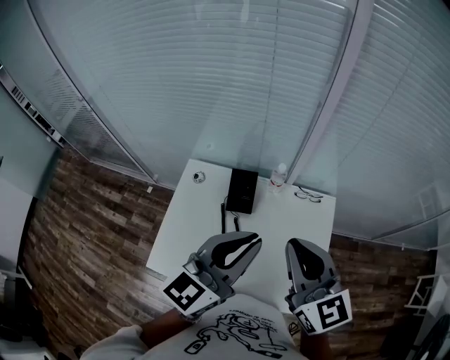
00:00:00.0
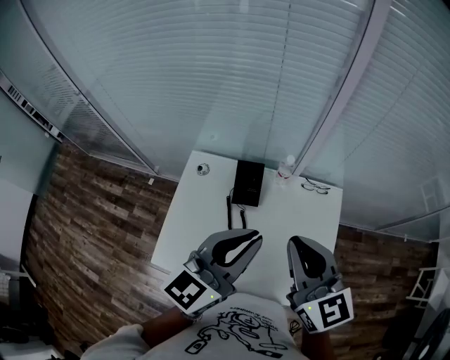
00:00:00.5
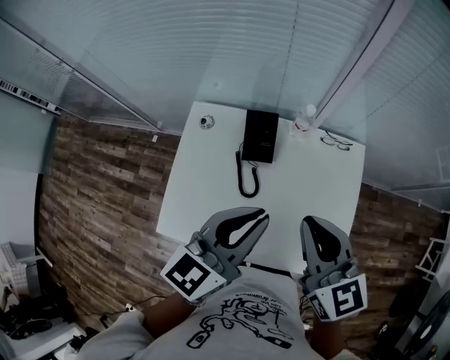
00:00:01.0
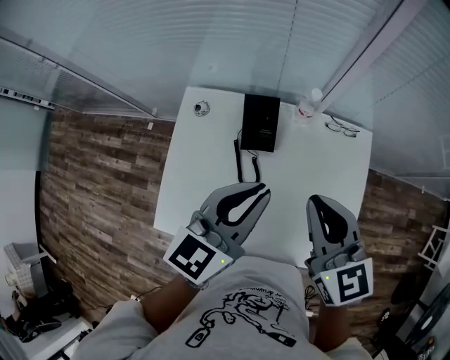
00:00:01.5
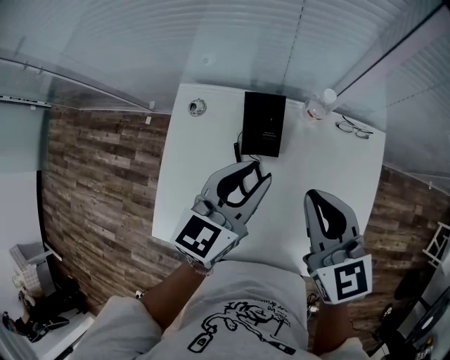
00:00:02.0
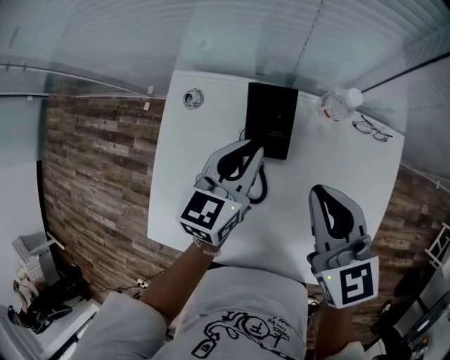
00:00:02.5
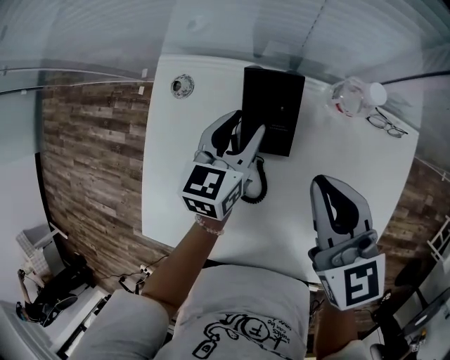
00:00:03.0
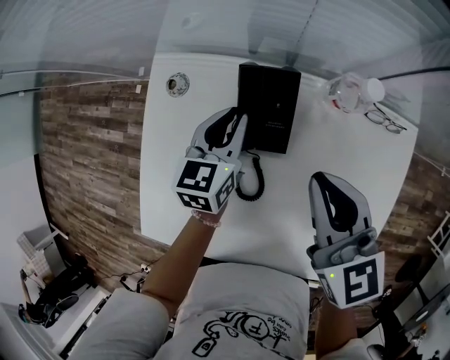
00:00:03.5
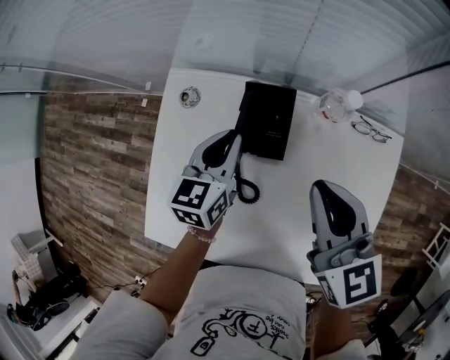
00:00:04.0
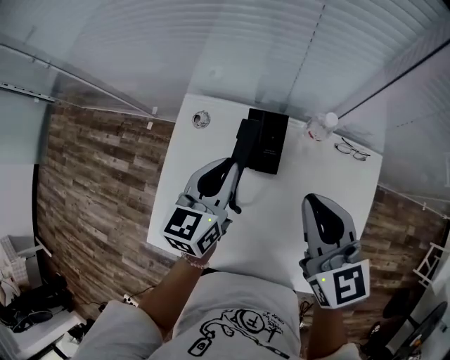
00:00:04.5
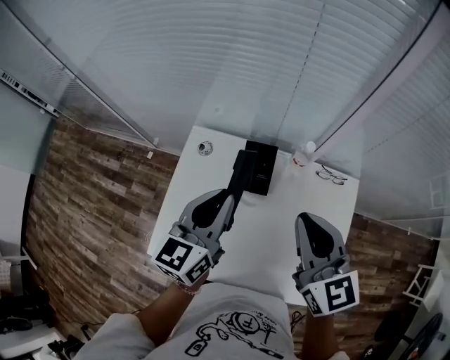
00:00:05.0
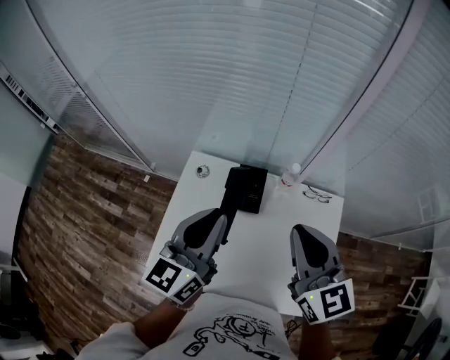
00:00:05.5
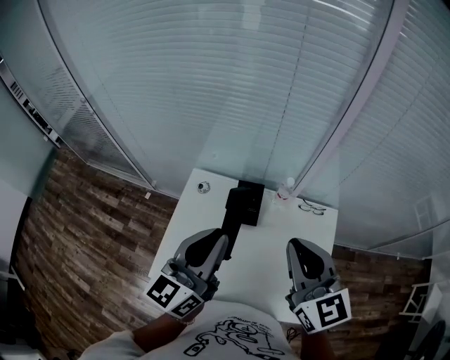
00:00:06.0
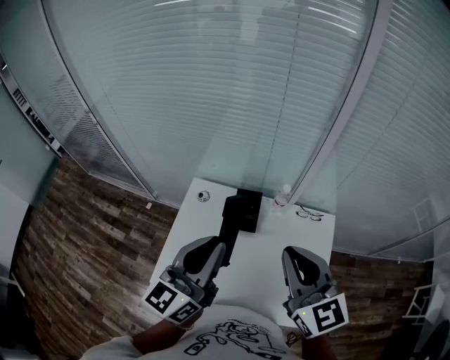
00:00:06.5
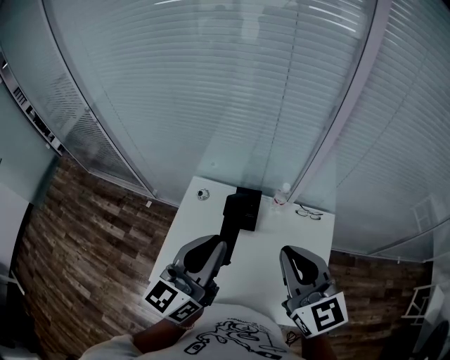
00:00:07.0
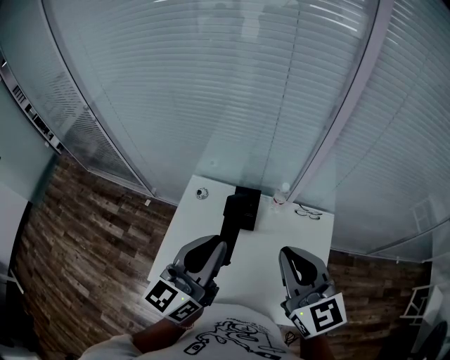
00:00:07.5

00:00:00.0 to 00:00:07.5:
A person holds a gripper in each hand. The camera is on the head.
00:00:00.0 to 00:00:02.0: Both grippers travel together downward and forward, about 25 cm. The left gripper turns by roughly 20 degrees.
00:00:02.0 to 00:00:04.0: The left gripper heads downward, forward and to the left, covering roughly 20 cm, and closes; the right gripper goes some 5 cm forward.
00:00:04.0 to 00:00:05.5: Both grippers move upward and backward, roughly 30 cm. The left gripper swivels about 30 degrees.
00:00:05.5 to 00:00:07.5: Both grippers move backward, some 5 cm.

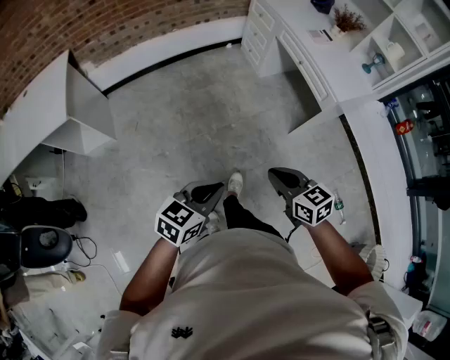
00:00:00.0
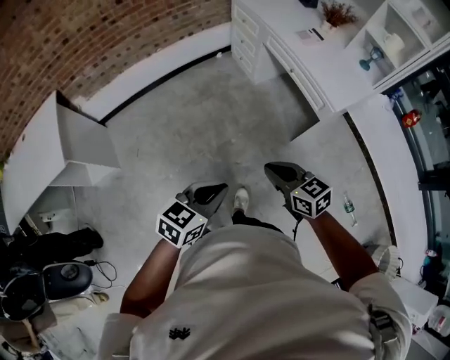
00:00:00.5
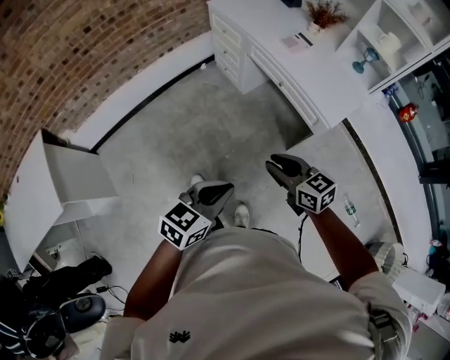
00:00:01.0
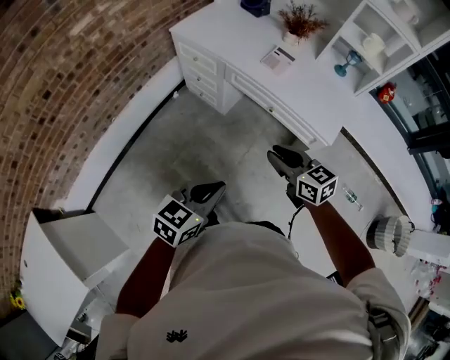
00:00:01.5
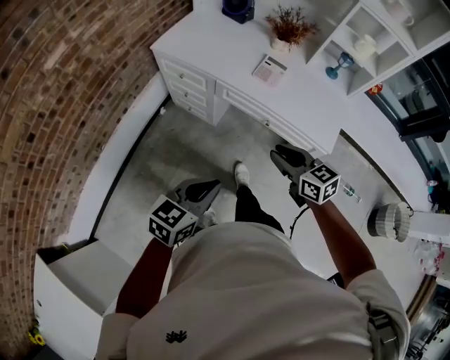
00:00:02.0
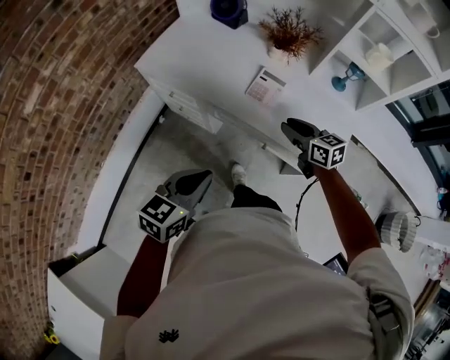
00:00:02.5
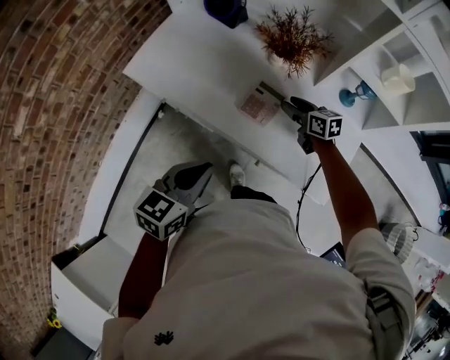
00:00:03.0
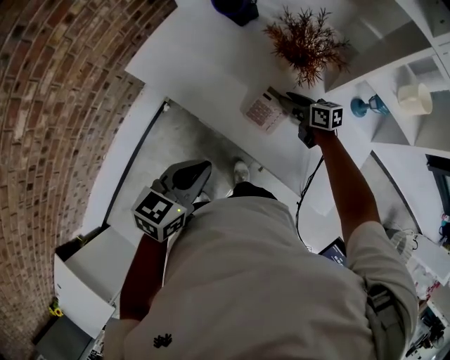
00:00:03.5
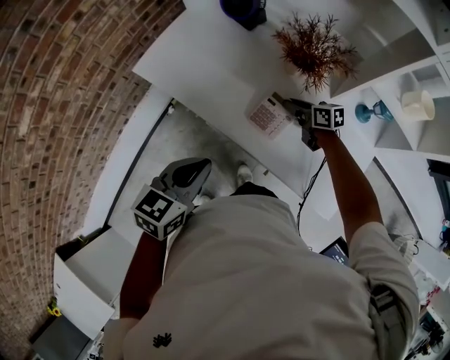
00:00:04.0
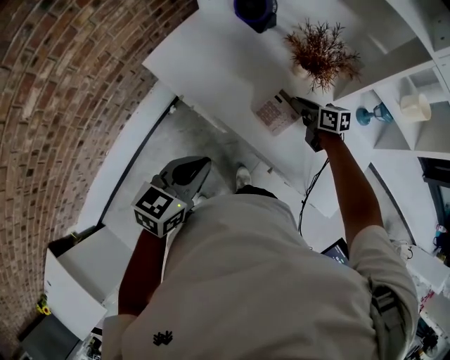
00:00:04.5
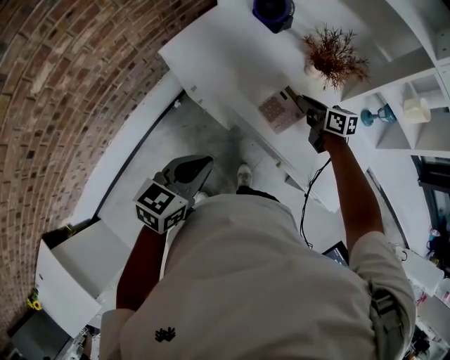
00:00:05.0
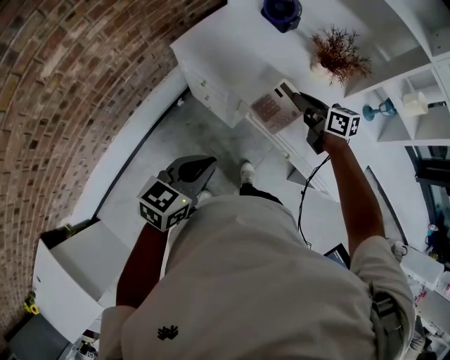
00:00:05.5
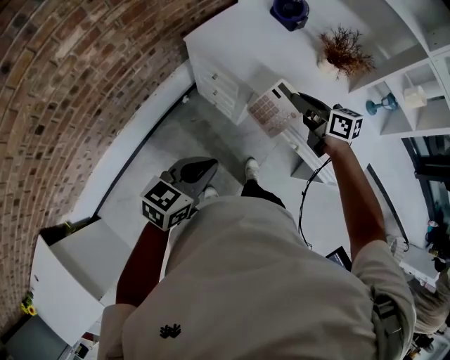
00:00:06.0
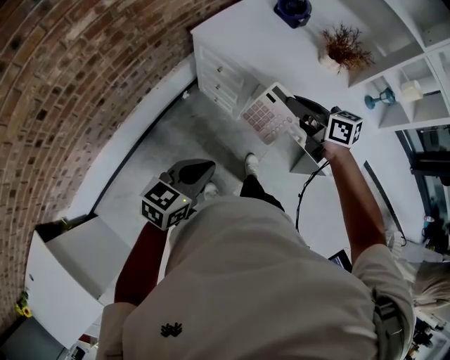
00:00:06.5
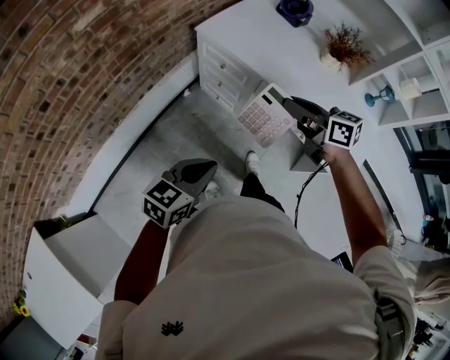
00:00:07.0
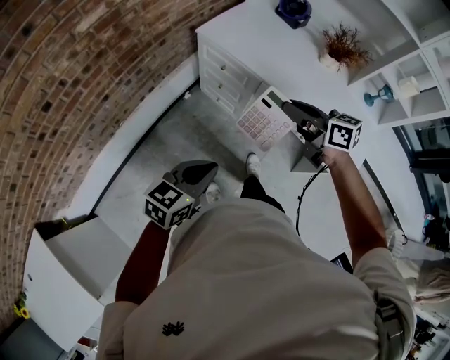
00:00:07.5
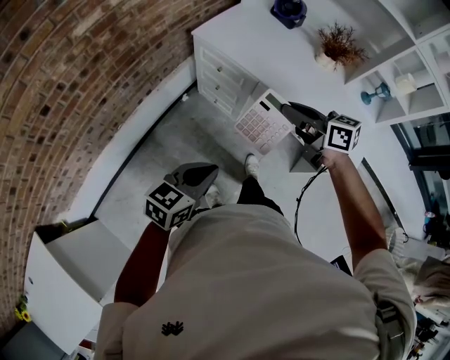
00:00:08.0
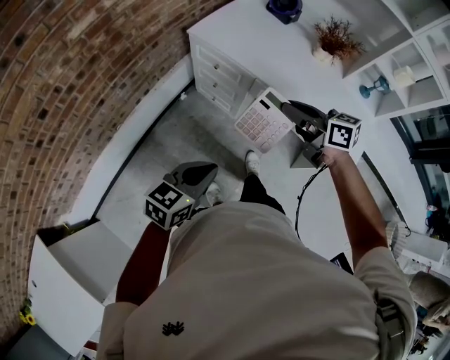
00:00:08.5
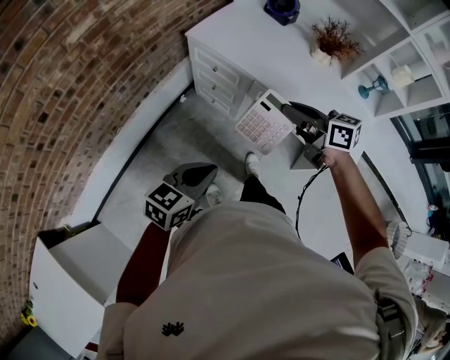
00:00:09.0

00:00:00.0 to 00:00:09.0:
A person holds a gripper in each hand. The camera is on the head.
00:00:00.0 to 00:00:02.0: The pair of grippers is taken roughly 60 cm. The left gripper rotates some 30 degrees, while the right gripper changes its angle by about 30 degrees, and opens.
00:00:02.0 to 00:00:04.5: Both grippers move forward, roughly 40 cm. The right gripper rotates about 20 degrees, and opens, then closes again.
00:00:04.5 to 00:00:07.0: The left gripper is displaced backward and to the left by about 30 cm, while the right gripper goes approximately 40 cm to the left, backward and upward.
00:00:07.0 to 00:00:09.0: The grippers move only a little.

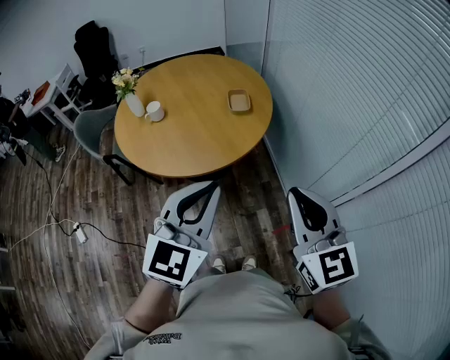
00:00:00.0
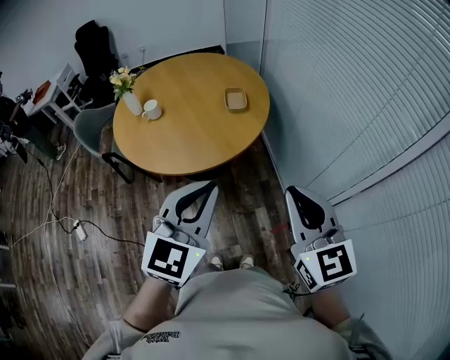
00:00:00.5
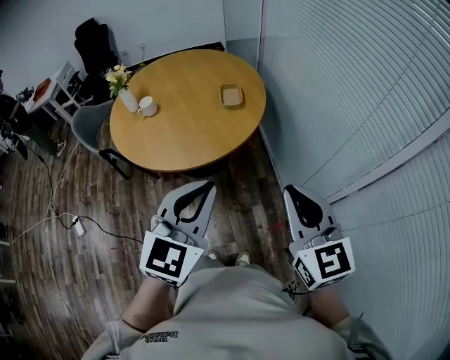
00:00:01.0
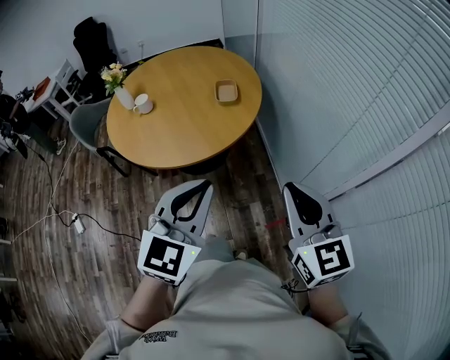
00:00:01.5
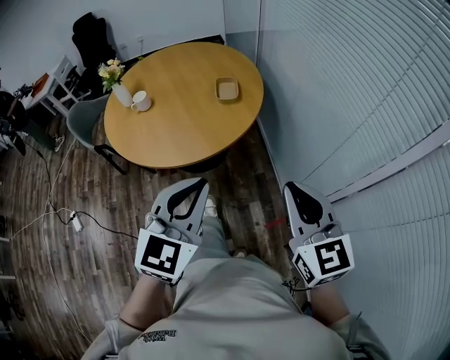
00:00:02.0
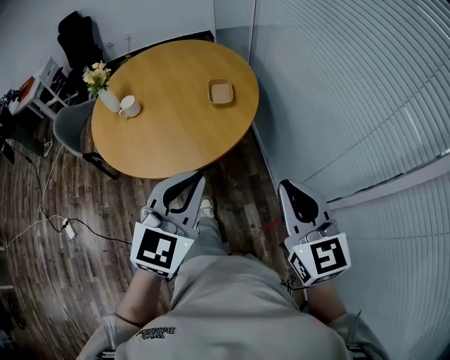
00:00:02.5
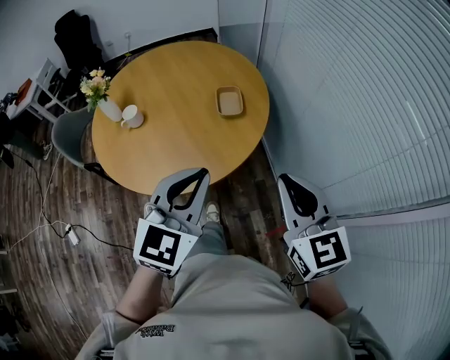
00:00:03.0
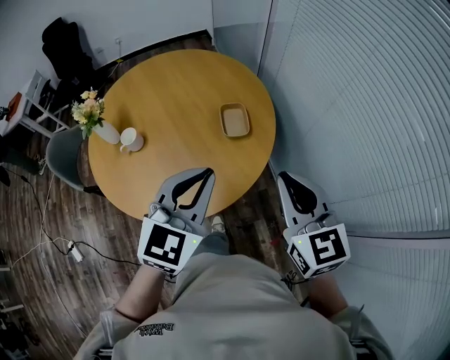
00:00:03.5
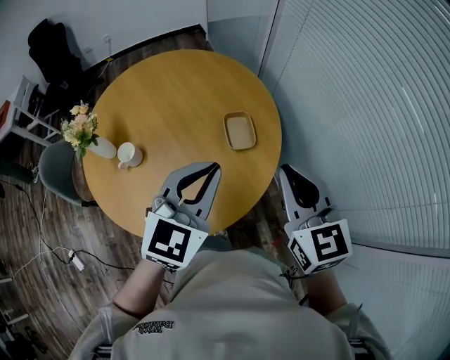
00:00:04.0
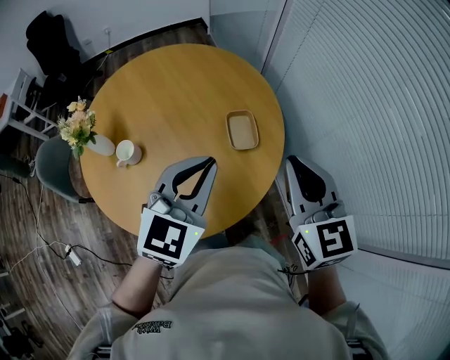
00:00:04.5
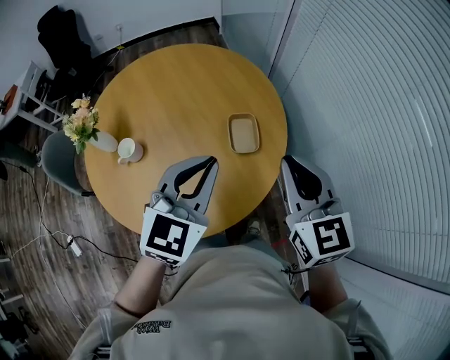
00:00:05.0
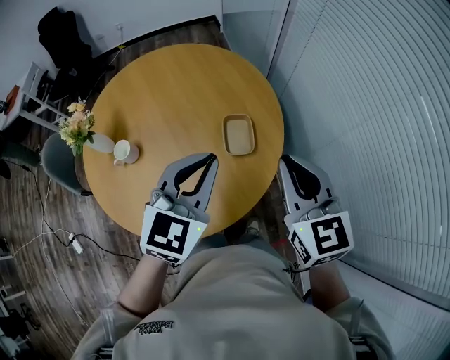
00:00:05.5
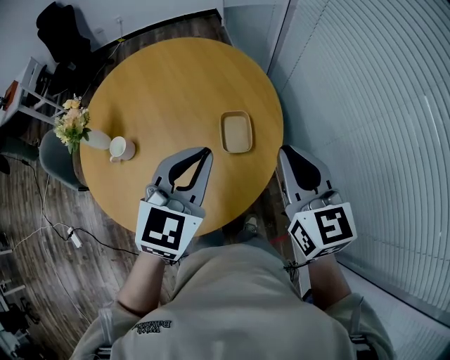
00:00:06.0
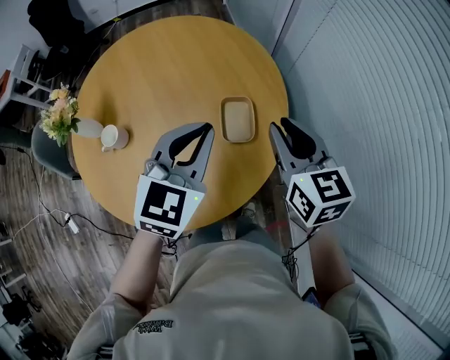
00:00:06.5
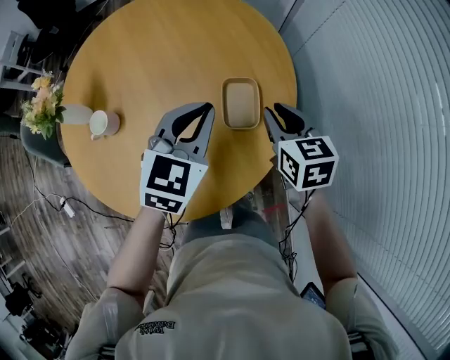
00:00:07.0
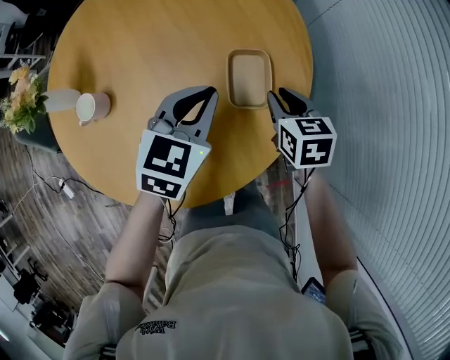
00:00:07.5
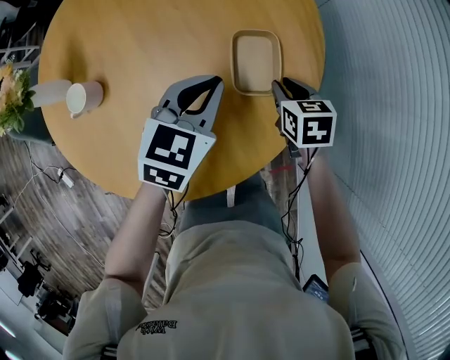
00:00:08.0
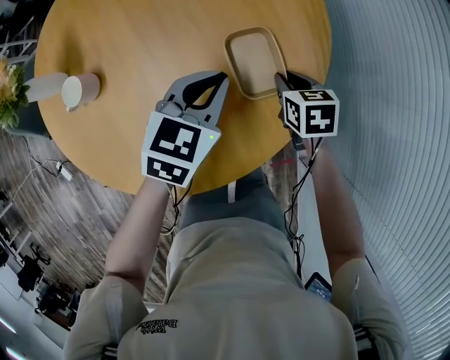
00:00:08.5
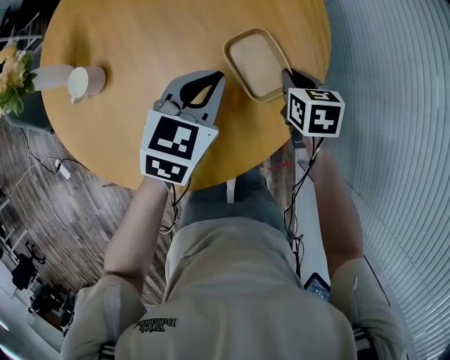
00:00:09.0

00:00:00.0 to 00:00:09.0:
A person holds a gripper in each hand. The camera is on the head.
00:00:00.0 to 00:00:02.0: Both grippers move to the right, some 5 cm.
00:00:02.0 to 00:00:04.5: Both grippers are carried forward and to the left, roughly 40 cm.
00:00:04.5 to 00:00:07.0: The right gripper goes roughly 30 cm downward and forward, and rotates approximately 30 degrees; the left gripper shifts roughly 20 cm forward and downward.
00:00:07.0 to 00:00:09.0: The grippers both shift downward by approximately 15 cm.

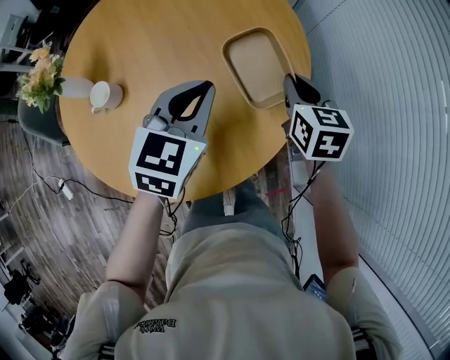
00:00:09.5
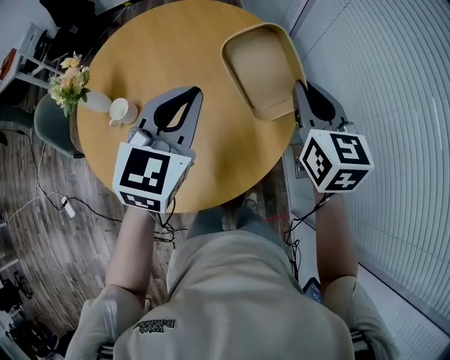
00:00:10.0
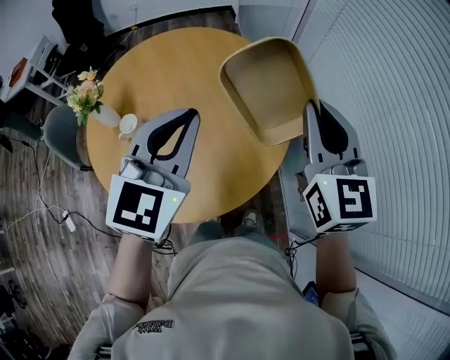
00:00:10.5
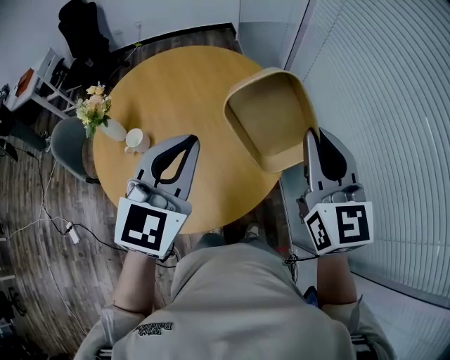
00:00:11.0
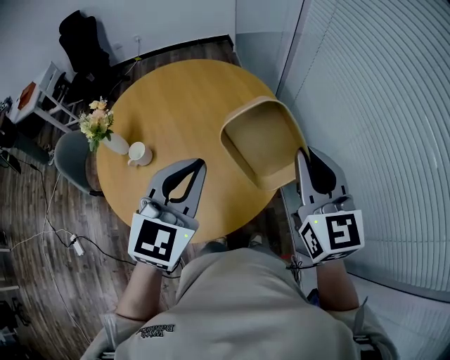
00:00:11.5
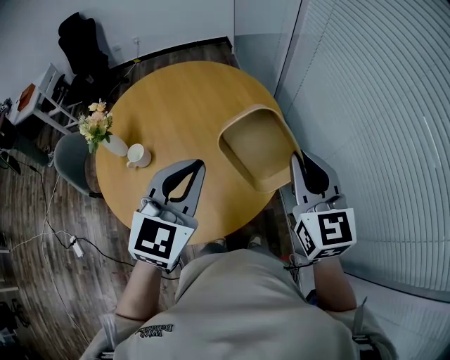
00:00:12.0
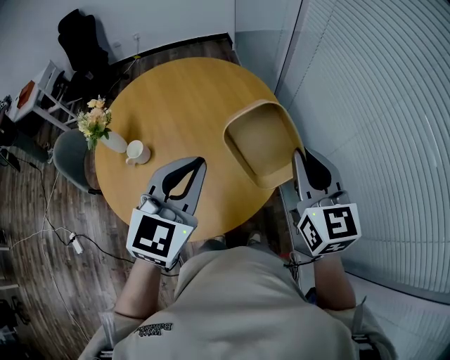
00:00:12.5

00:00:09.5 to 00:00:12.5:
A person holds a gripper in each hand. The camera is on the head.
00:00:09.5 to 00:00:11.0: Both grippers travel together upward and backward, some 30 cm. The left gripper changes its angle by roughly 20 degrees; the right gripper tilts its fingers approximately 30 degrees upward.
00:00:11.0 to 00:00:12.5: The grippers stay close to where they were, moving slightly.
